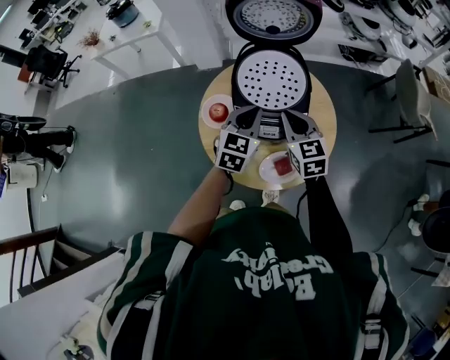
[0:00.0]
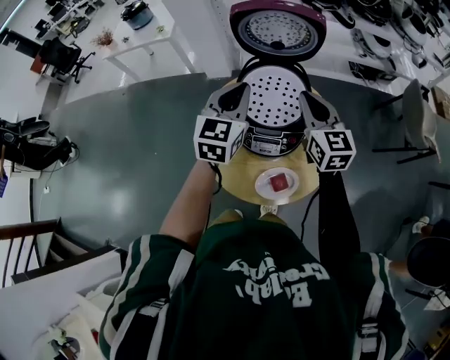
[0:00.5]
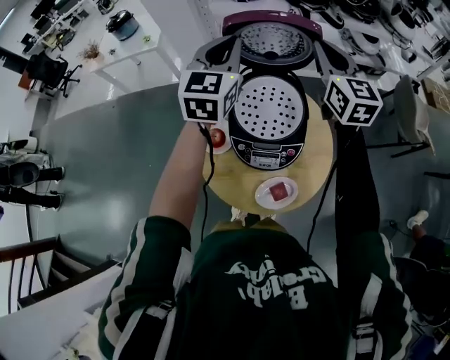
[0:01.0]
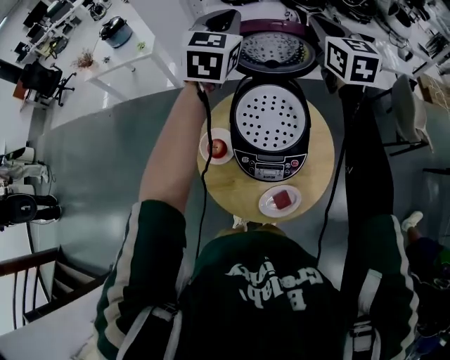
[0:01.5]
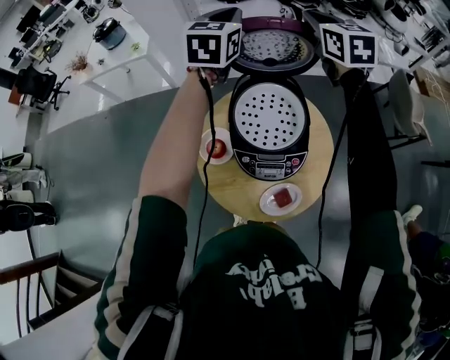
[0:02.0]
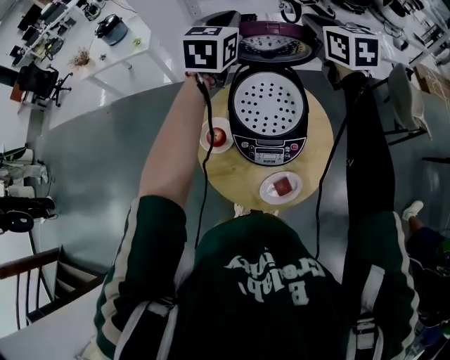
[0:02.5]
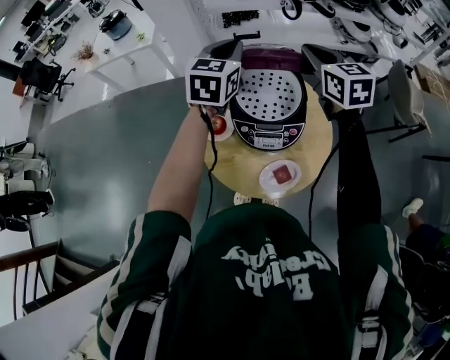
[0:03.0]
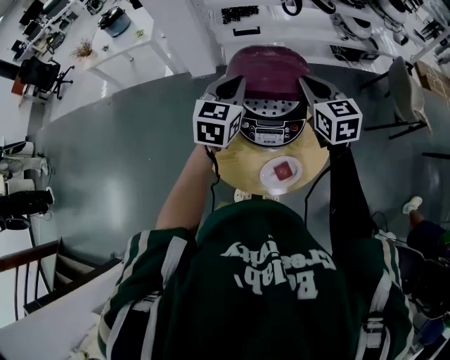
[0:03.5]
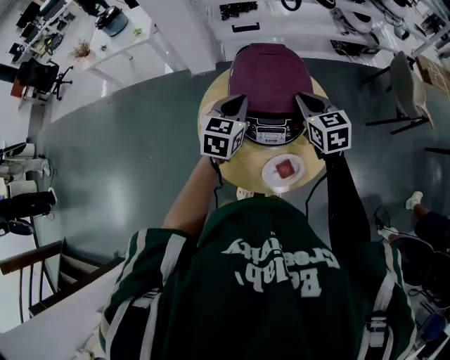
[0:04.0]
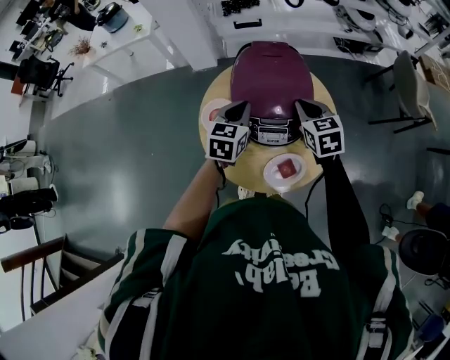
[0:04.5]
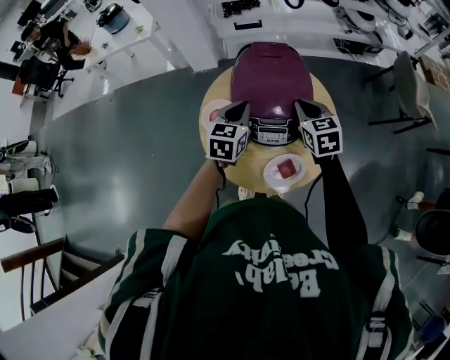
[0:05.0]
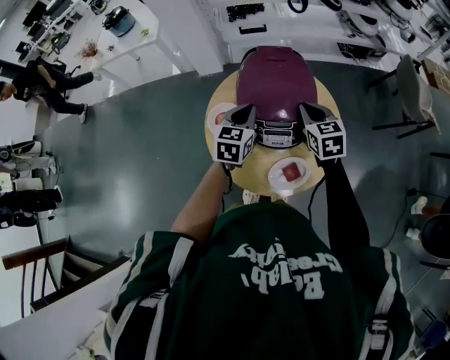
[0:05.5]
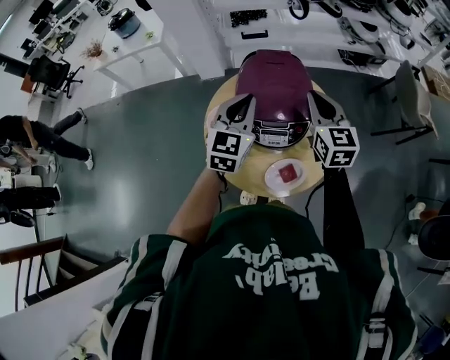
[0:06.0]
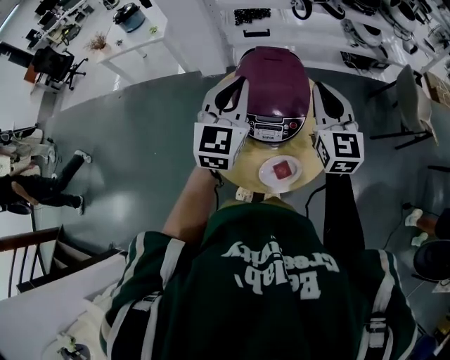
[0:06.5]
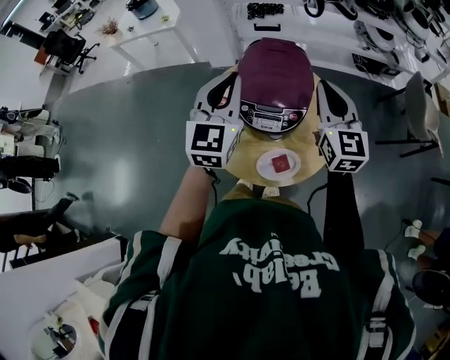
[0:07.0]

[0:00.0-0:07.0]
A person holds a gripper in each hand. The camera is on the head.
0:00.0 to 0:02.0: Both grippers move forward and upward, roughly 40 cm.
0:02.0 to 0:03.5: The two grippers go approximately 25 cm backward and downward.
0:03.5 to 0:05.0: The grippers both shift downward by approximately 10 cm.
0:05.0 to 0:07.0: The two grippers go some 15 cm upward. The left gripper swivels some 30 degrees. The right gripper tilts its fingers roughly 30 degrees upward.

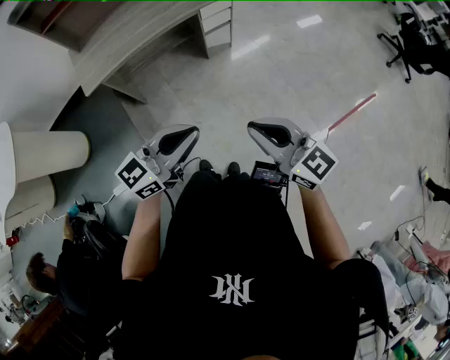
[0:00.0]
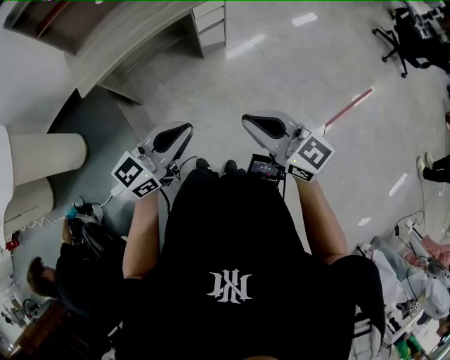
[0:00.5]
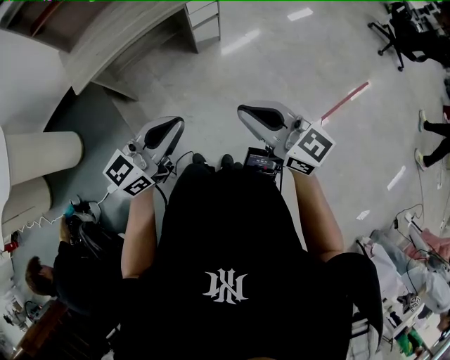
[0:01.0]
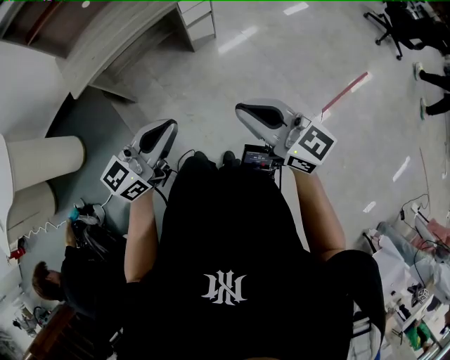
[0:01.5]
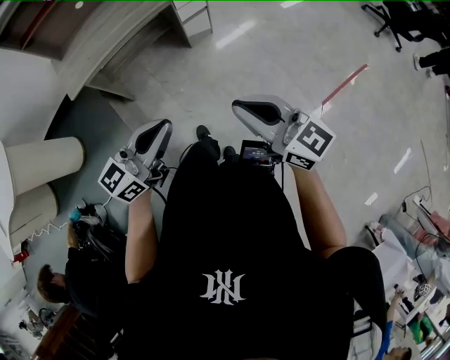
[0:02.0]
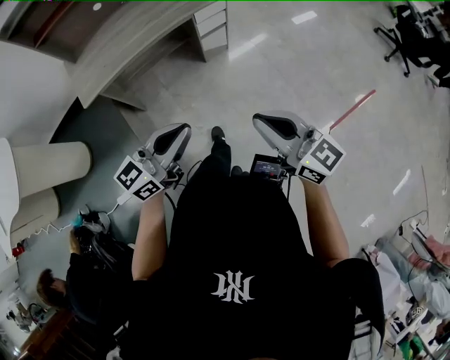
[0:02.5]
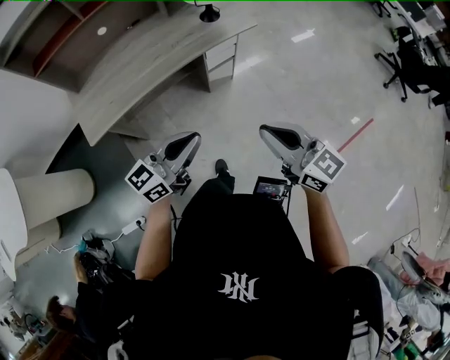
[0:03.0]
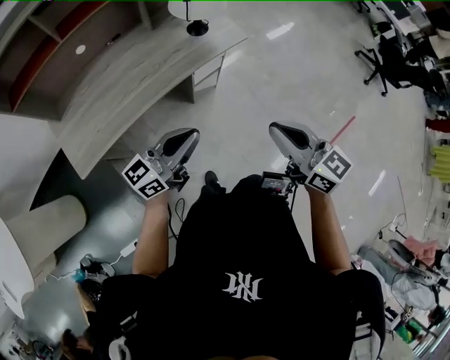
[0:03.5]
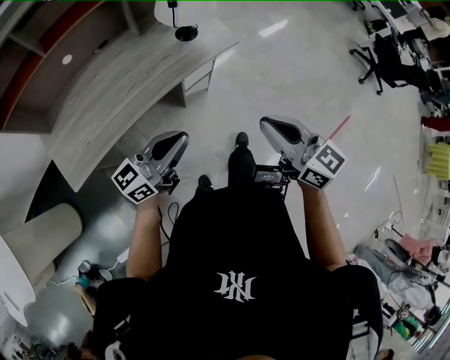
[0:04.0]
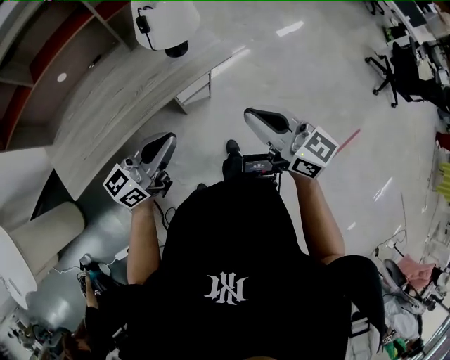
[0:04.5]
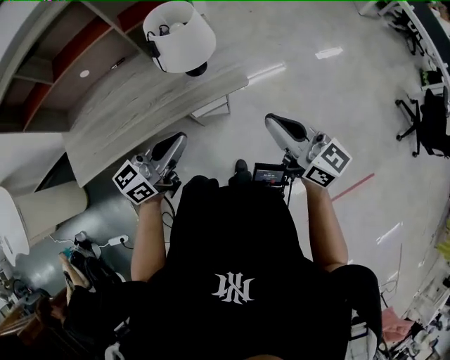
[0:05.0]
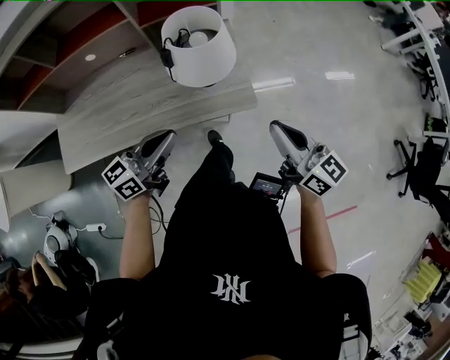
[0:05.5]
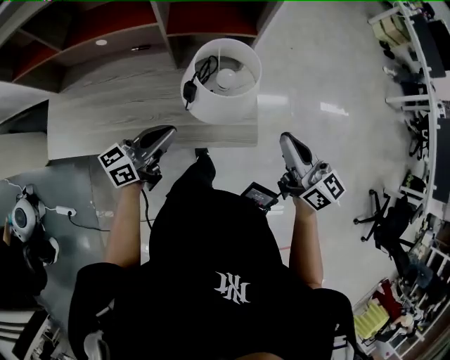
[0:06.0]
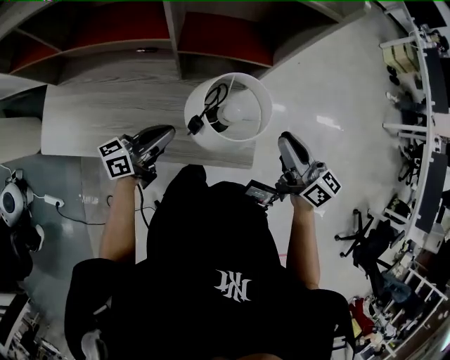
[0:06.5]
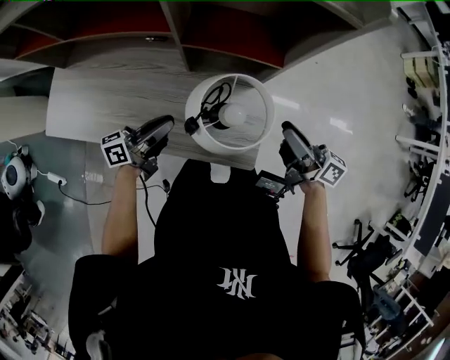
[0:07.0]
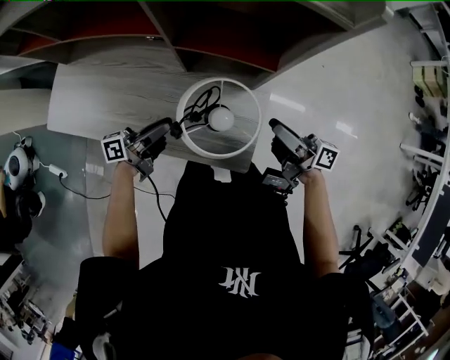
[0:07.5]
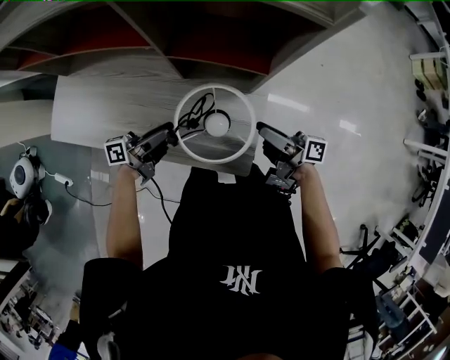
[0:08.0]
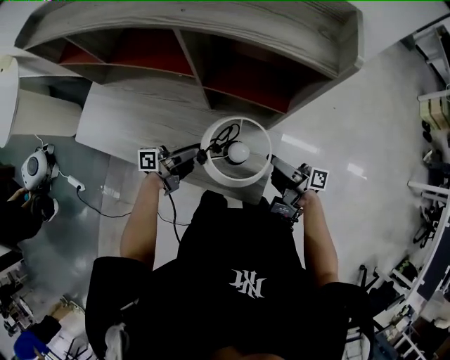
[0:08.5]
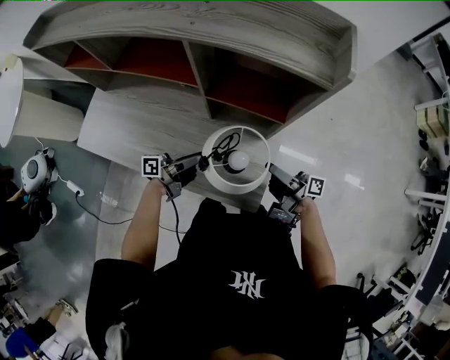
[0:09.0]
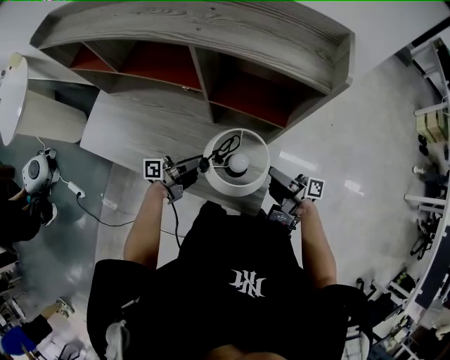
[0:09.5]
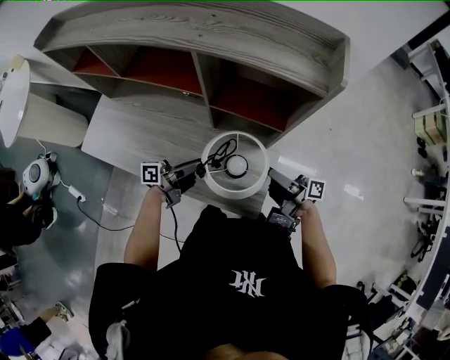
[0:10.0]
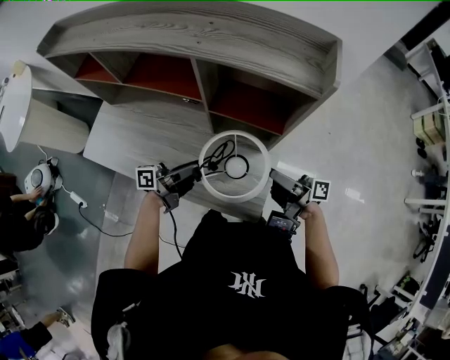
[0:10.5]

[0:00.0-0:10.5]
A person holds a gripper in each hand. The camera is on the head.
0:00.0 to 0:02.0: The grippers stay close to where they were, moving slightly.
0:02.0 to 0:04.0: The pair of grippers is taken forward, about 40 cm.
0:04.0 to 0:06.5: The pair of grippers is taken about 50 cm. The right gripper changes its angle by roughly 30 degrees. Meanwhile the left gripper changes its angle by about 40 degrees.
0:06.5 to 0:08.5: The right gripper shifts roughly 15 cm downward and forward, changes its angle by roughly 60 degrees, and opens up. The left gripper ends up approximately 5 cm from where it was, swivels some 30 degrees, and opens.
0:08.5 to 0:10.5: The two grippers go about 10 cm upward.

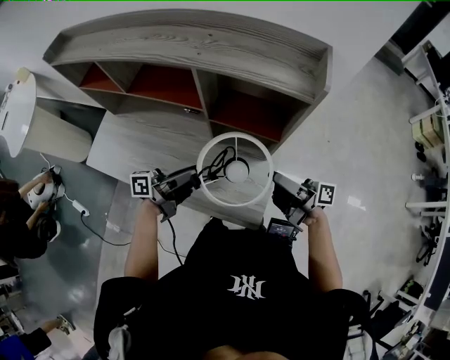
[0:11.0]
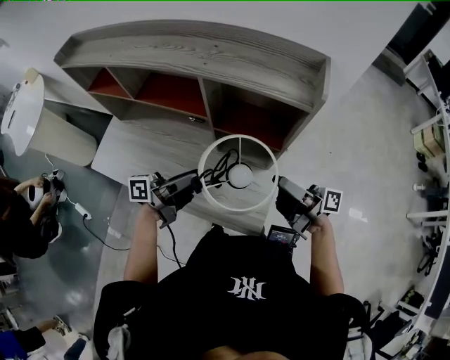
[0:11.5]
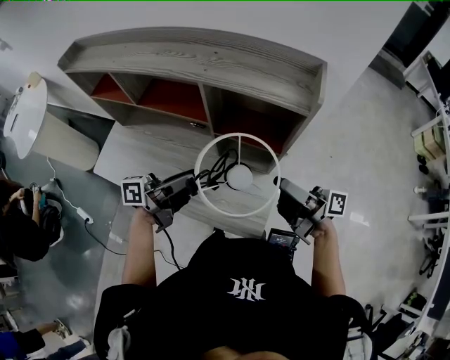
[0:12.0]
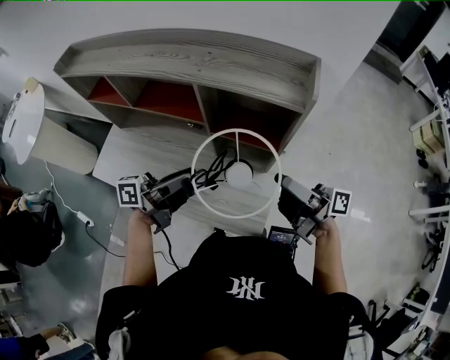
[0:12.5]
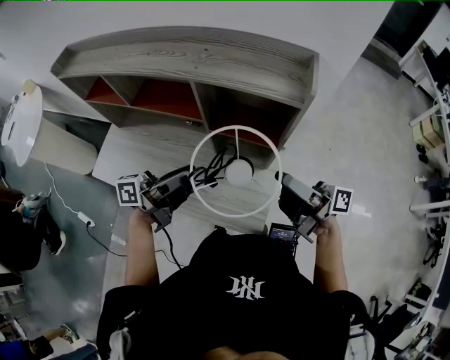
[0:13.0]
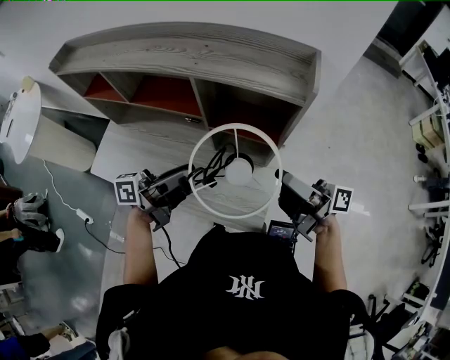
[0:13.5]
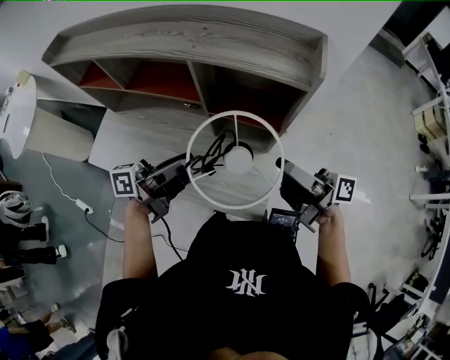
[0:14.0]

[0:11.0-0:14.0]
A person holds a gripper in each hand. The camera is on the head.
0:11.0 to 0:12.5: The two grippers go about 10 cm upward.
0:12.5 to 0:14.0: Both grippers stay about where they are.

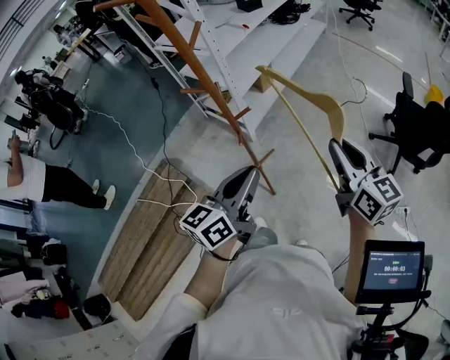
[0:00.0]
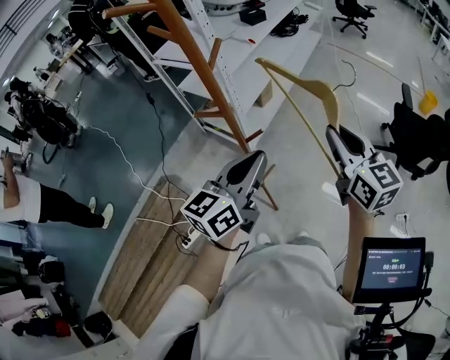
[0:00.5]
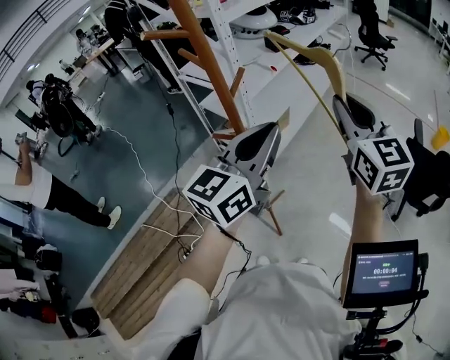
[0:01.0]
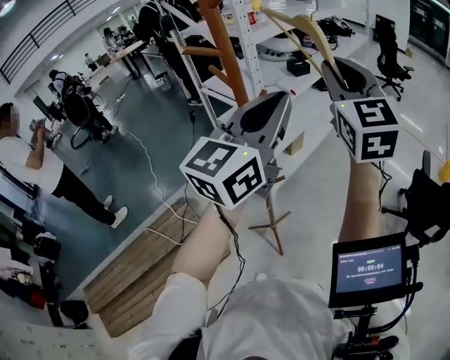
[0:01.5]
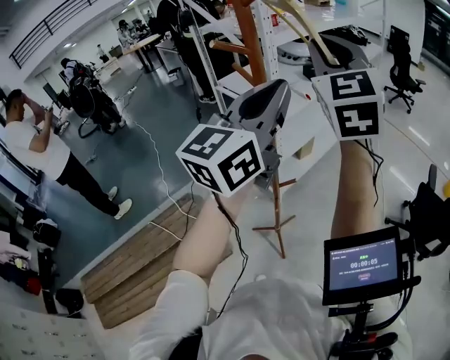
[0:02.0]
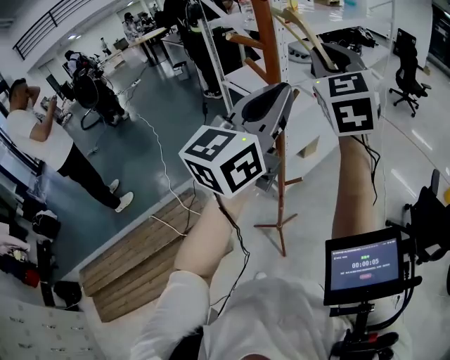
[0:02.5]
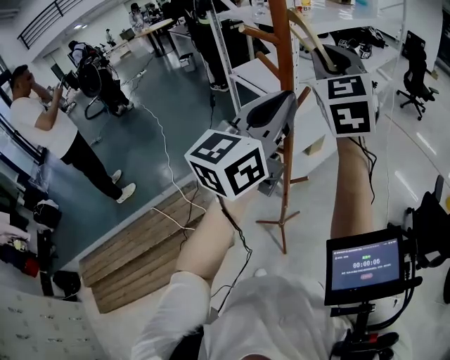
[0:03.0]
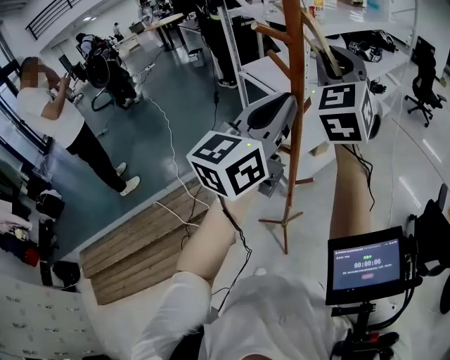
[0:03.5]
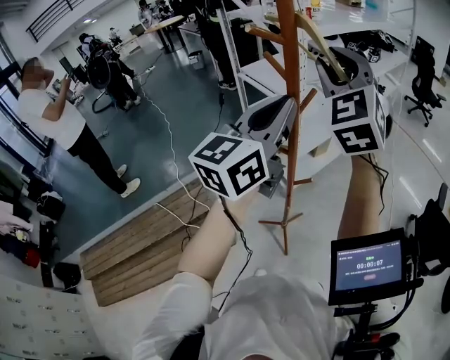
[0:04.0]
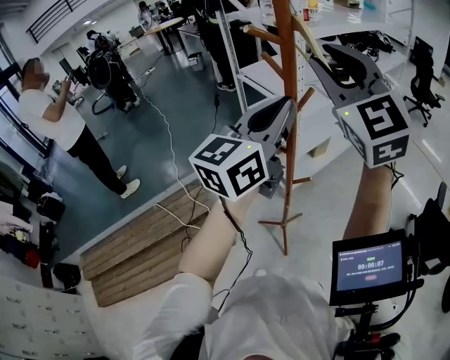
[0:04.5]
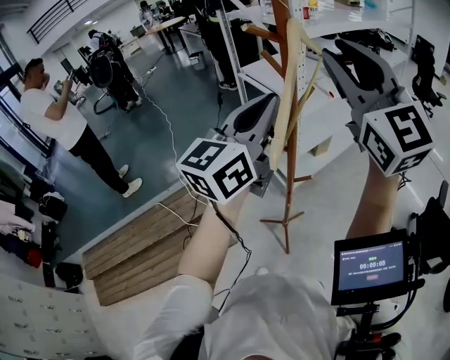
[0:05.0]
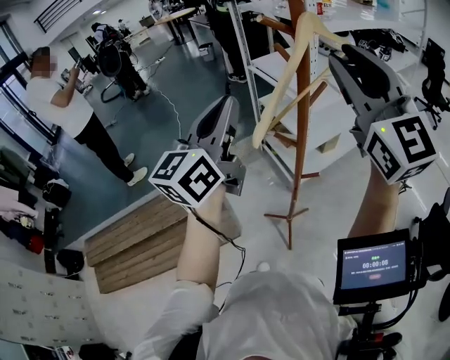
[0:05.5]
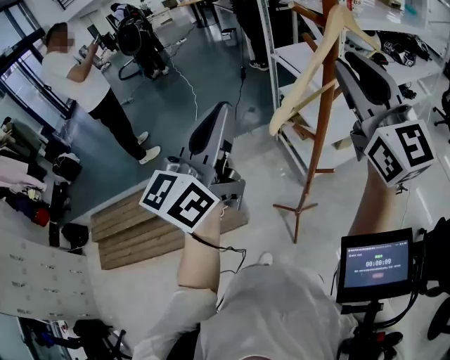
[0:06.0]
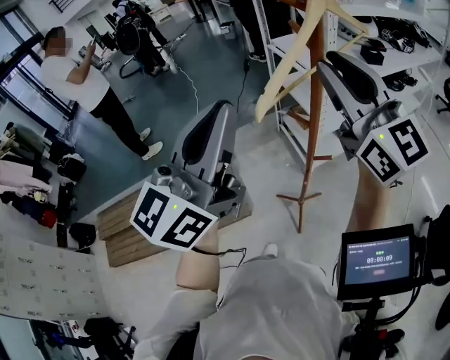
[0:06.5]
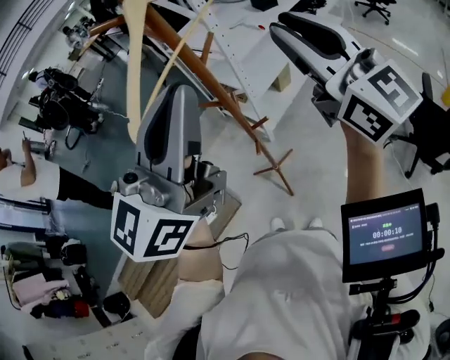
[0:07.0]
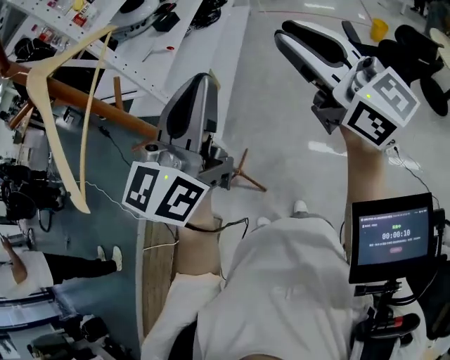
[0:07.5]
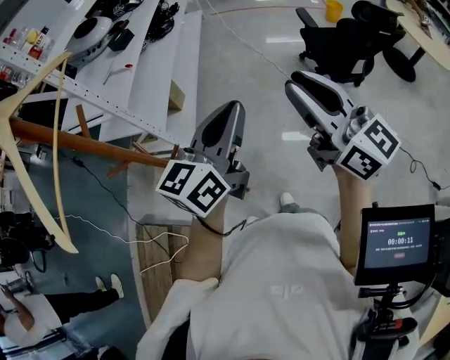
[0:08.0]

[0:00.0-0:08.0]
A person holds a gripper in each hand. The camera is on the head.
0:00.0 to 0:02.0: The left gripper heads upward and forward, covering approximately 35 cm, and swivels approximately 40 degrees; the right gripper goes some 50 cm upward, to the left and forward, and rotates around the line of its fingers by about 50 degrees, counterclockwise from behind.
0:02.0 to 0:04.0: Both grippers travel together to the left and downward, approximately 10 cm.
0:04.0 to 0:06.0: The left gripper moves roughly 20 cm, and changes its angle by approximately 30 degrees, while the right gripper shifts by some 10 cm, and swivels approximately 50 degrees.
0:06.0 to 0:08.0: The left gripper changes place by approximately 50 cm, and turns by roughly 70 degrees, while the right gripper moves approximately 40 cm, and swivels about 50 degrees.
